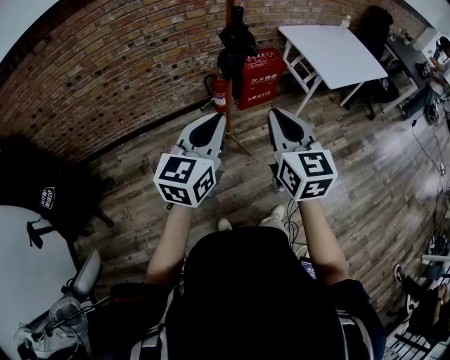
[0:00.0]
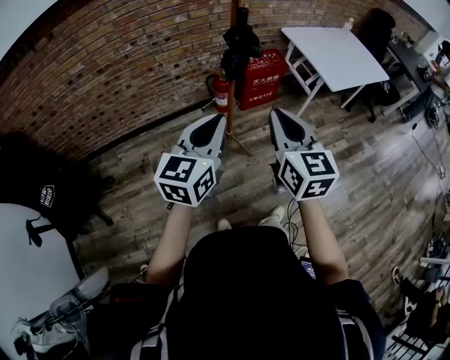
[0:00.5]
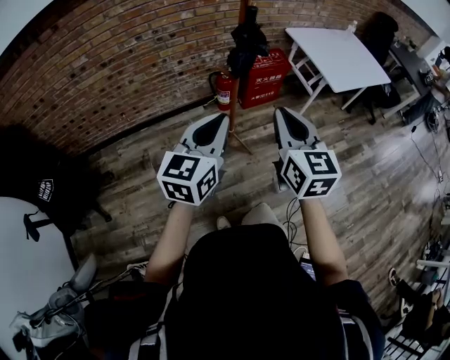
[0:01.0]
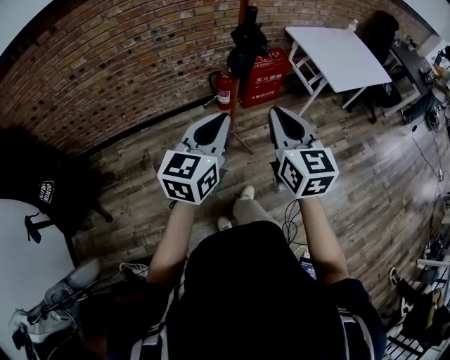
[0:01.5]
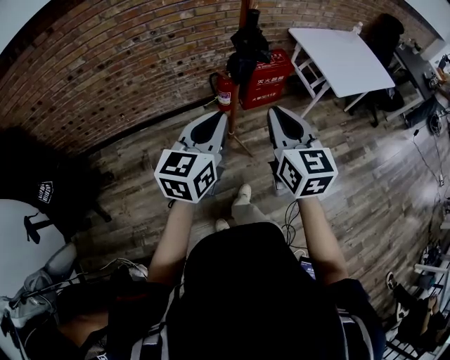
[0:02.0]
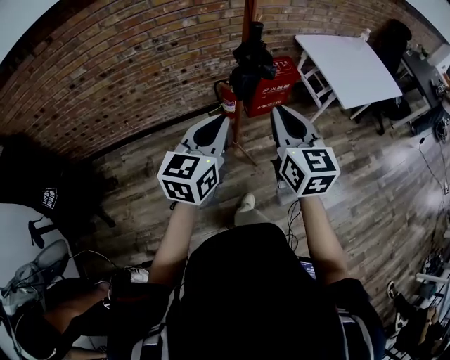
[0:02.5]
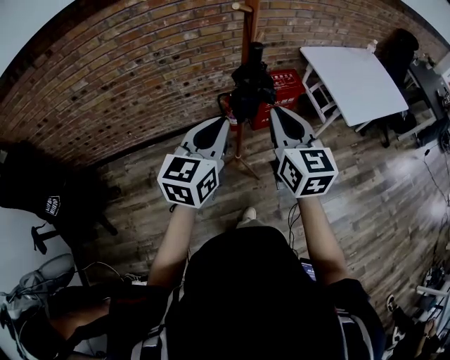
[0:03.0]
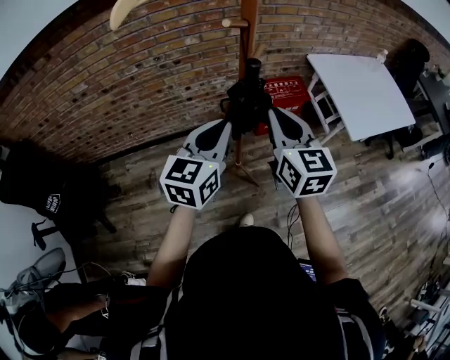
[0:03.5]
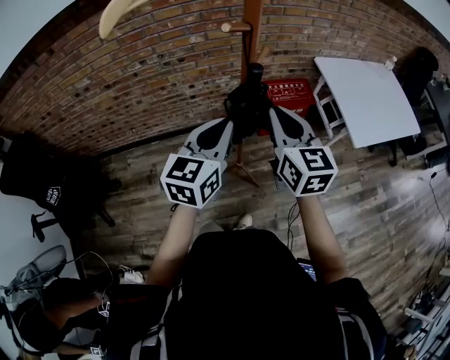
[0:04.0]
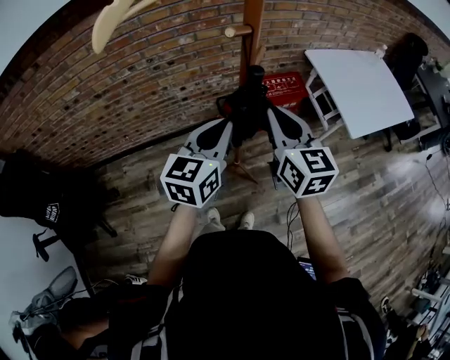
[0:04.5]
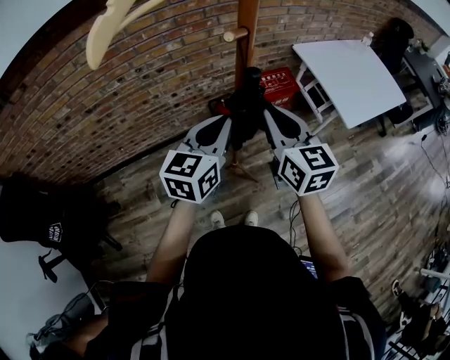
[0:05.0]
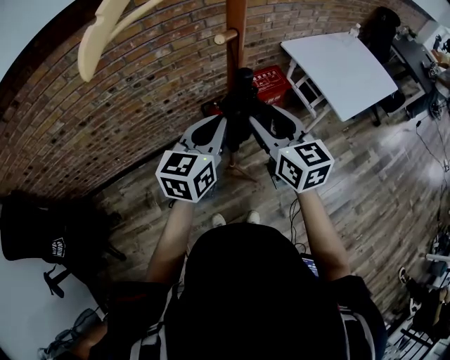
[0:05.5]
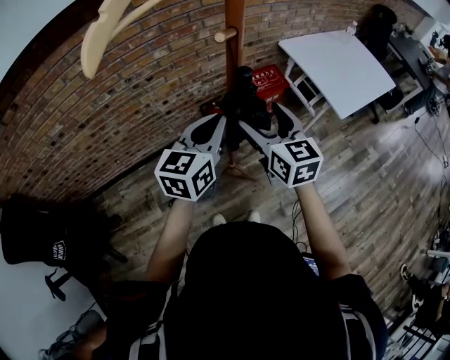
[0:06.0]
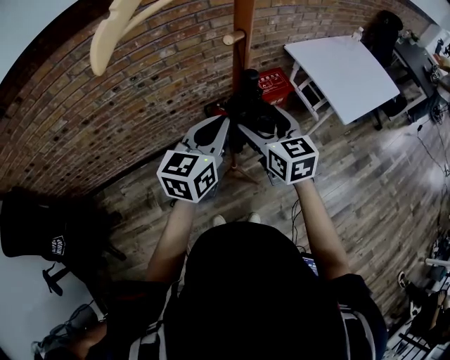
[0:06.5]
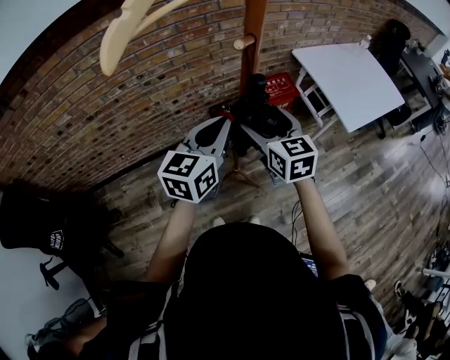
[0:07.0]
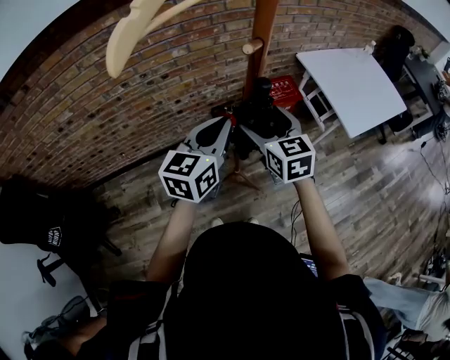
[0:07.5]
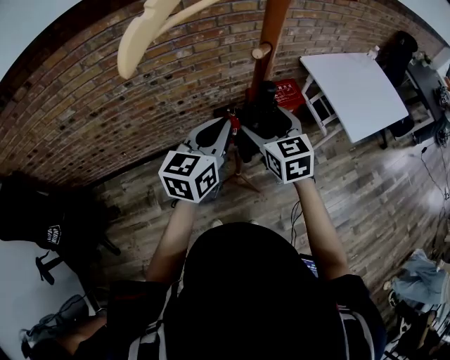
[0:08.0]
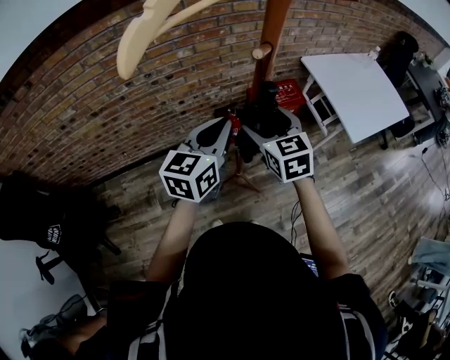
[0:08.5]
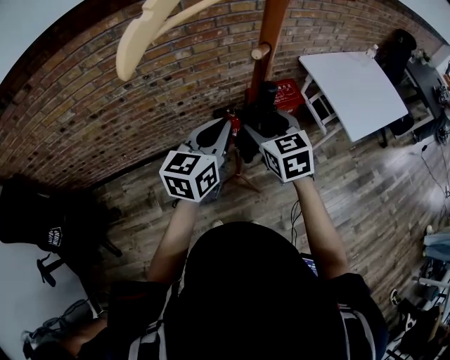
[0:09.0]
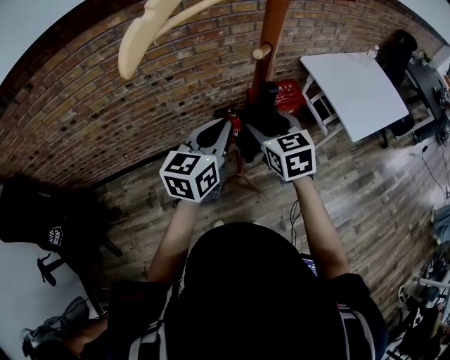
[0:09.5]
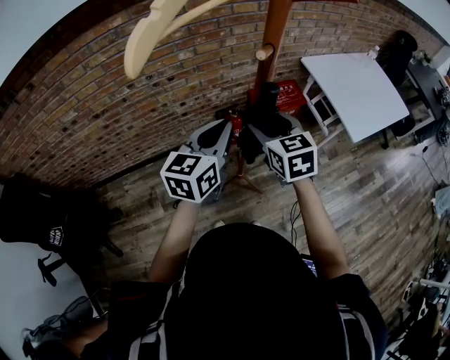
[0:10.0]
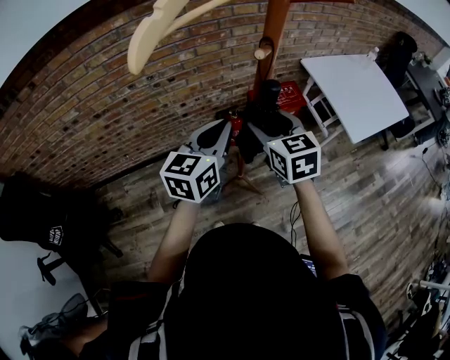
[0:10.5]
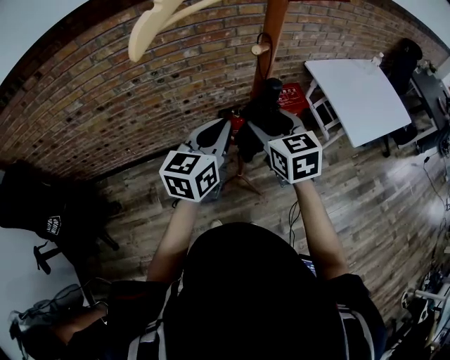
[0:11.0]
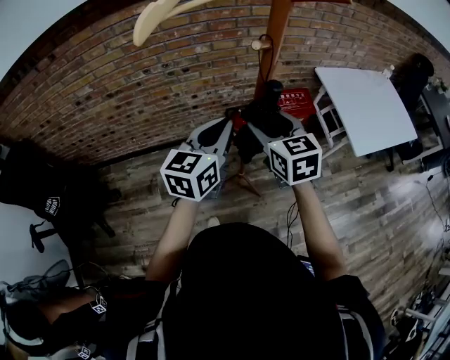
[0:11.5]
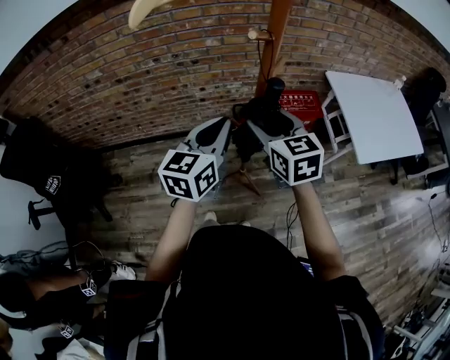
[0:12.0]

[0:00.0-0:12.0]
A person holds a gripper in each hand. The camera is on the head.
0:00.0 to 0:02.0: The right gripper moves roughly 5 cm. Meanwhile the left gripper moves approximately 5 cm.
0:02.0 to 0:04.0: Both grippers travel together forward, some 20 cm.
0:04.0 to 0:06.0: The right gripper shifts by roughly 5 cm, and opens.
0:06.0 to 0:08.0: The right gripper ends up some 5 cm from where it was.
0:08.0 to 0:10.0: The grippers move only a little.
0:10.0 to 0:12.0: The right gripper changes place by some 5 cm. Meanwhile the left gripper heads backward, covering roughly 5 cm.

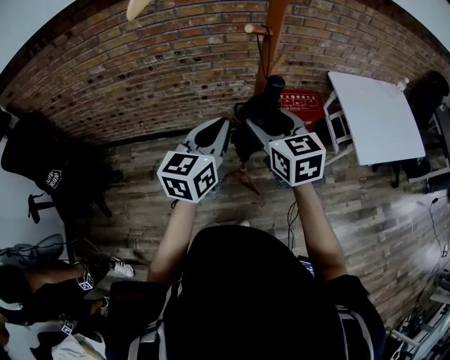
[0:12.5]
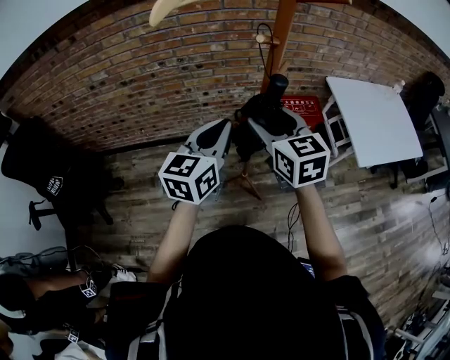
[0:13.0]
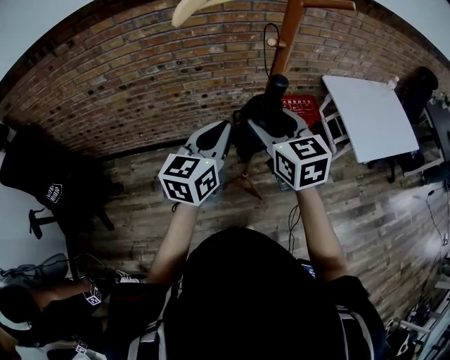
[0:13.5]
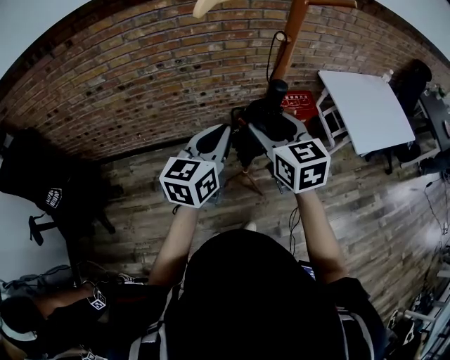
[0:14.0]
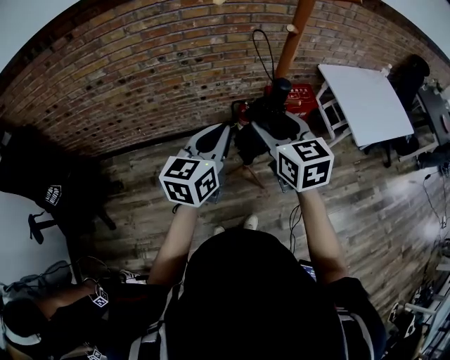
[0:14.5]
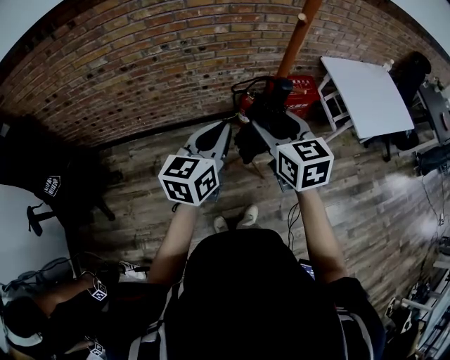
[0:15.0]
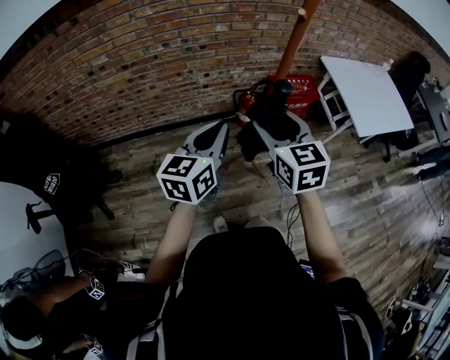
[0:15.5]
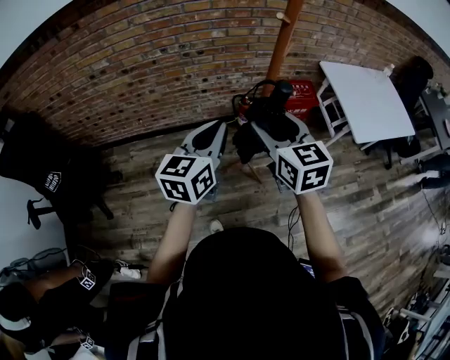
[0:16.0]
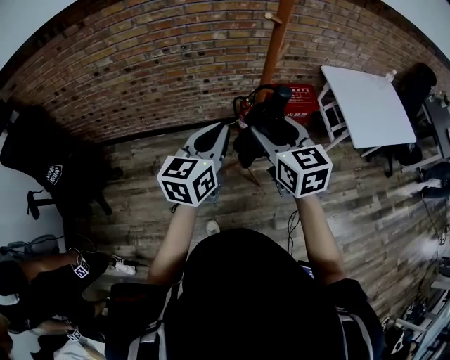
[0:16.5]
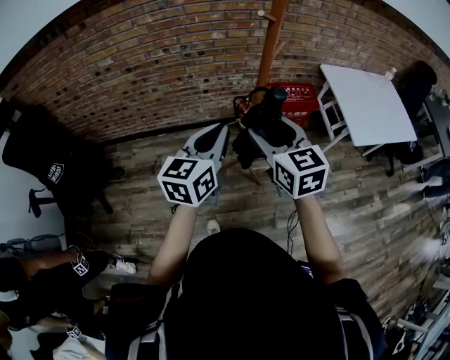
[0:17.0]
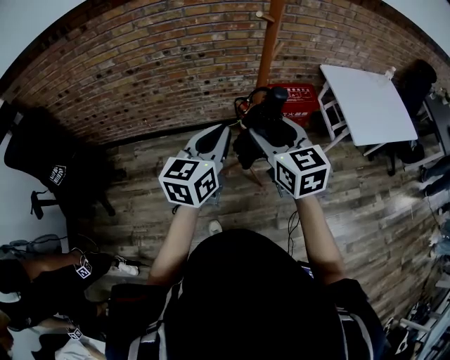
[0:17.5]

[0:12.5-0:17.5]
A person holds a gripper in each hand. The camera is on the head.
0:12.5 to 0:15.0: The right gripper shifts roughly 10 cm backward and to the left. Meanwhile the left gripper heads to the left and backward, covering roughly 10 cm.
0:15.0 to 0:17.5: Both grippers move to the right, some 5 cm.

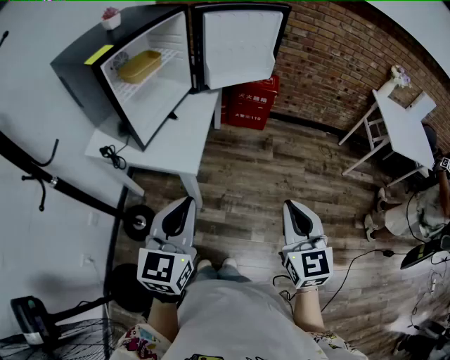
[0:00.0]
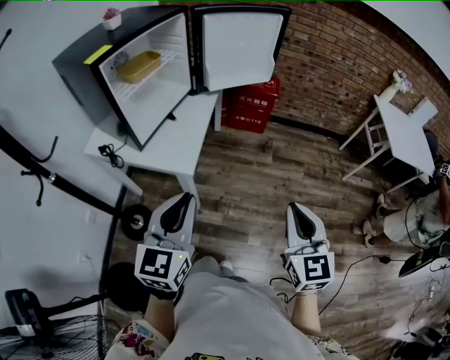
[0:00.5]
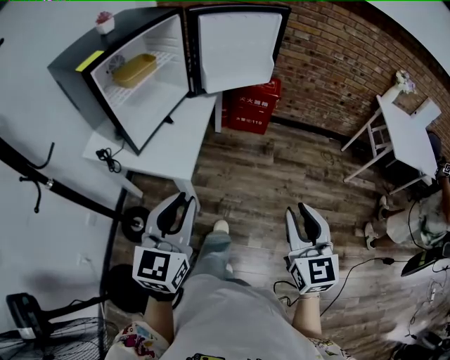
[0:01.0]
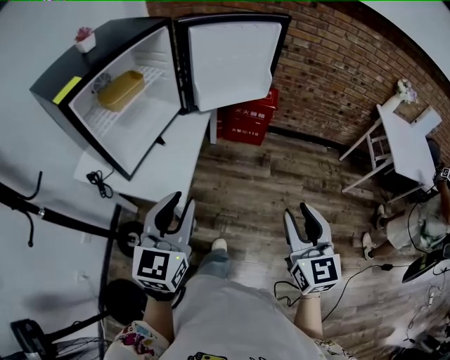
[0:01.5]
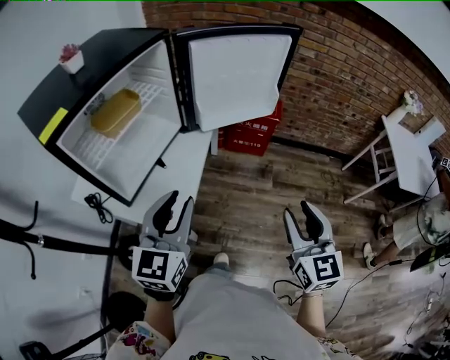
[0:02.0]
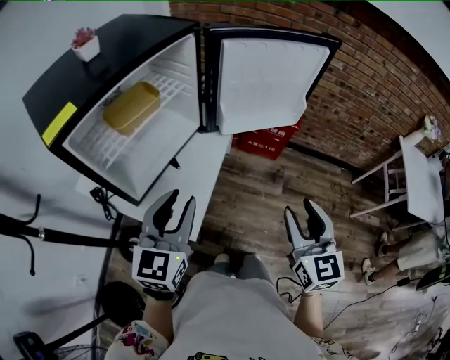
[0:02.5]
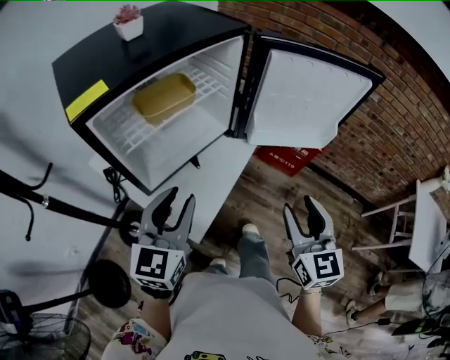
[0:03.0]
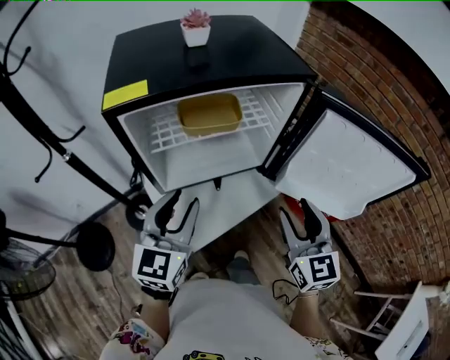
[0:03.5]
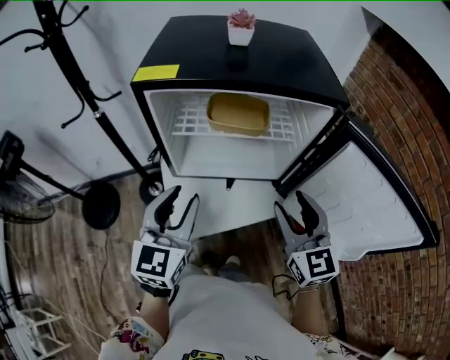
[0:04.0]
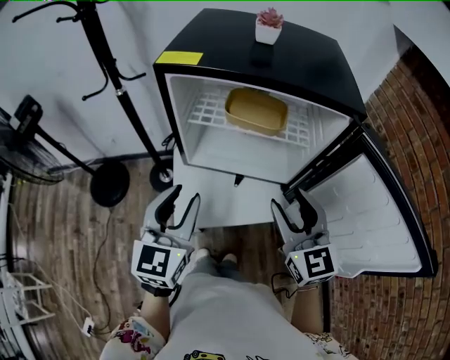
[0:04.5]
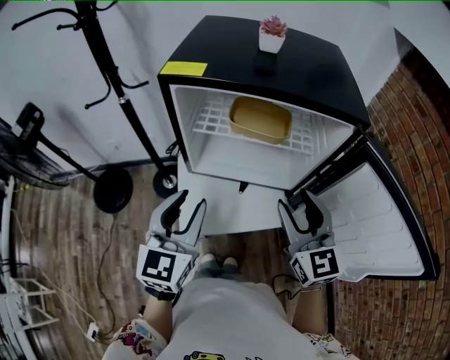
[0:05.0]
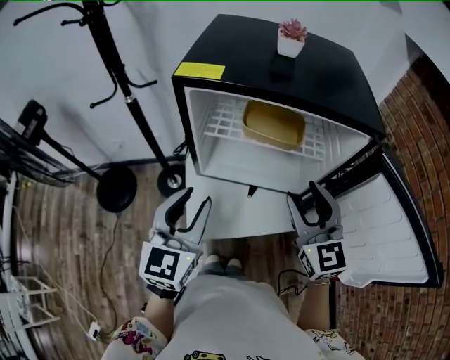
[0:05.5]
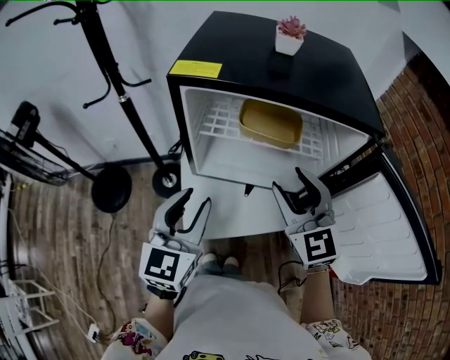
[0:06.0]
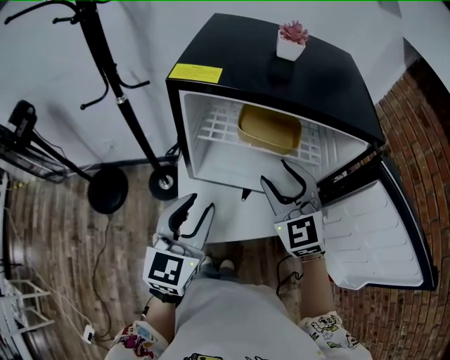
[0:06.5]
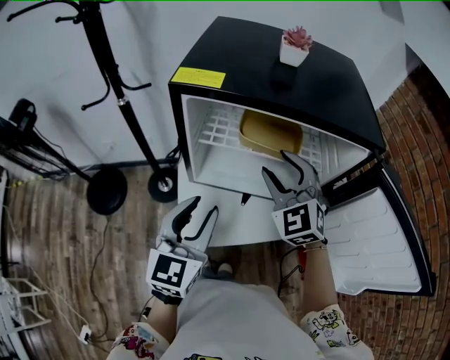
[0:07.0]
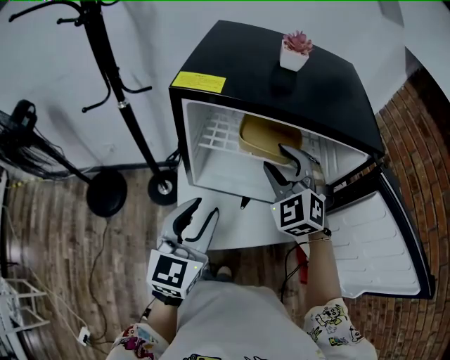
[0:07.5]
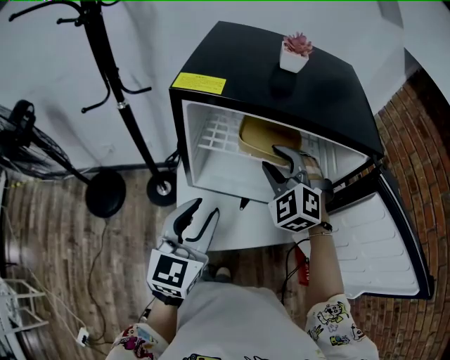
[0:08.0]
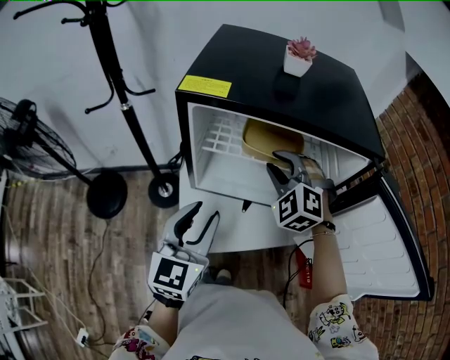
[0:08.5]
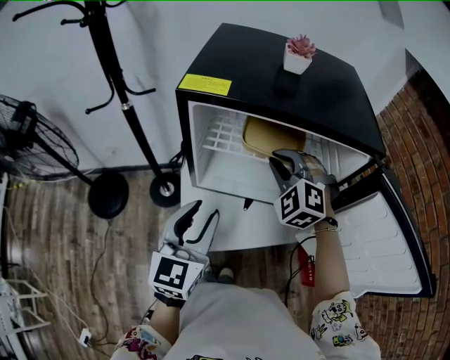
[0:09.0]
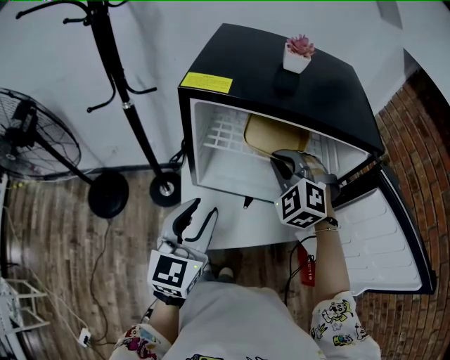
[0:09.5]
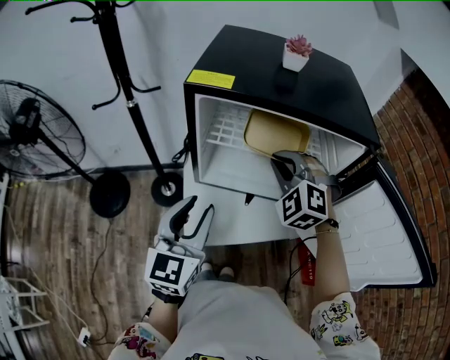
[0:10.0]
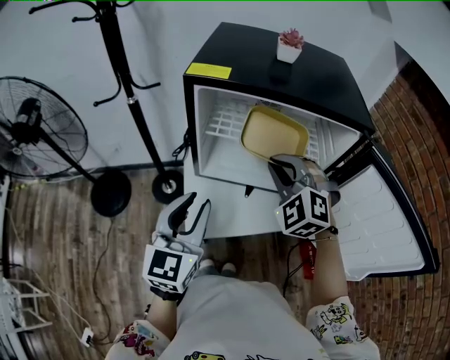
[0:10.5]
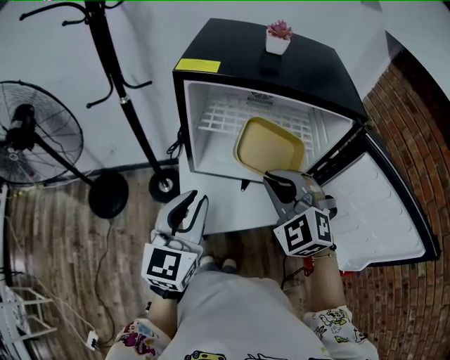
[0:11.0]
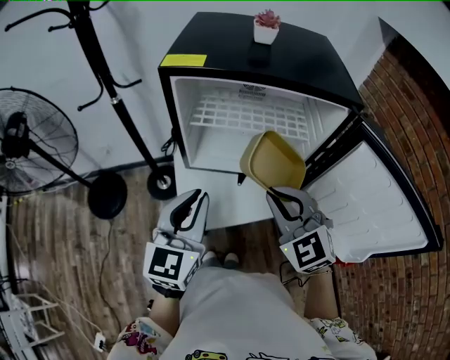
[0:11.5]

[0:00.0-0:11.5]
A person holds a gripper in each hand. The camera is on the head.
0:00.0 to 0:02.0: Both grippers travel together forward, roughly 20 cm. The left gripper opens its fingers, while the right gripper opens its fingers.
0:02.0 to 0:04.0: The right gripper changes place by roughly 35 cm, and turns by approximately 70 degrees. The left gripper moves some 10 cm, and changes its angle by some 60 degrees.
0:04.0 to 0:06.0: The right gripper is displaced forward and to the left by some 10 cm, and changes its angle by about 20 degrees.
0:06.0 to 0:07.5: The right gripper shifts some 10 cm forward, and swivels about 30 degrees.
0:07.5 to 0:09.5: The right gripper closes up.
0:09.5 to 0:11.5: The right gripper is displaced backward by some 20 cm, and changes its angle by approximately 30 degrees. Meanwhile the left gripper closes.
